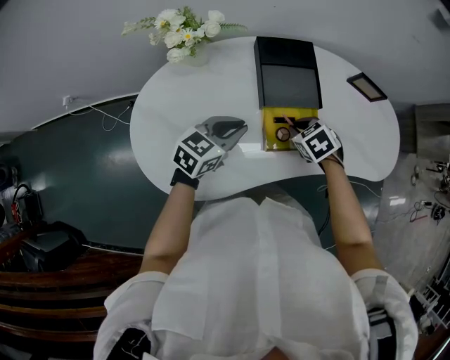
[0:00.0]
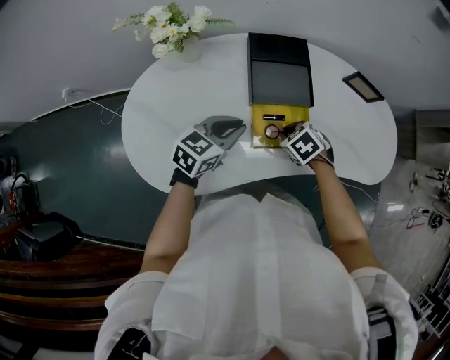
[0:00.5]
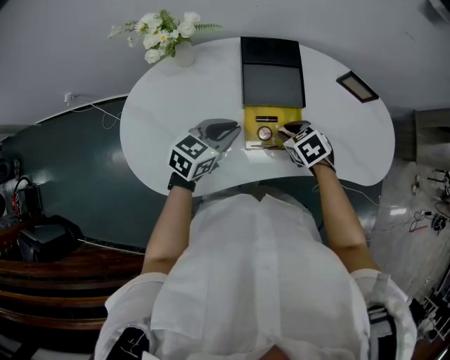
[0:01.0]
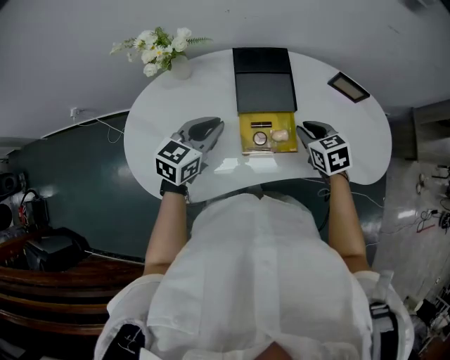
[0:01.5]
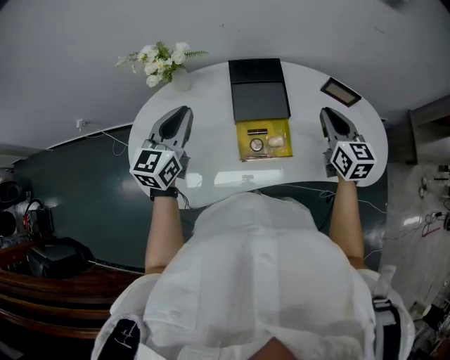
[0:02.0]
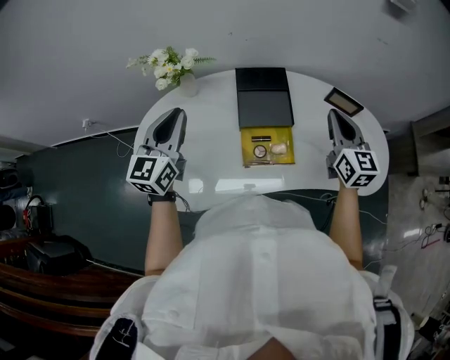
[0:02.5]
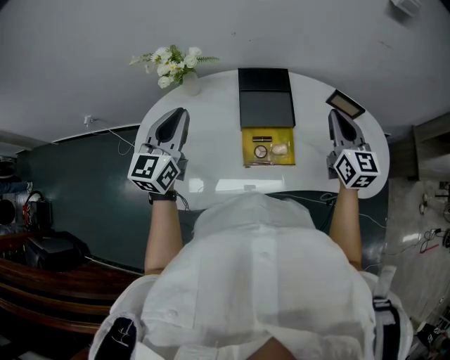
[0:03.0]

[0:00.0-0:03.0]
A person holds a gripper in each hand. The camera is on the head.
0:00.0 to 0:01.5: The right gripper heads to the right and upward, covering about 10 cm, and swivels approximately 20 degrees.
0:01.5 to 0:03.0: The right gripper shifts roughly 15 cm upward, and tips its fingers upward by approximately 40 degrees; the left gripper heads upward and to the left, covering approximately 15 cm, and swivels some 30 degrees.

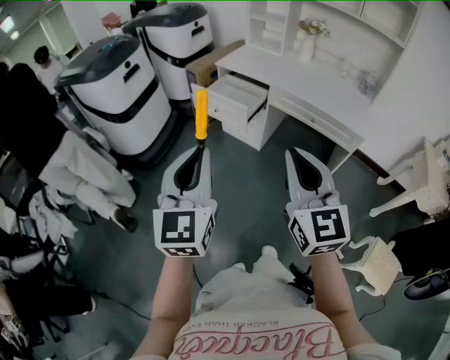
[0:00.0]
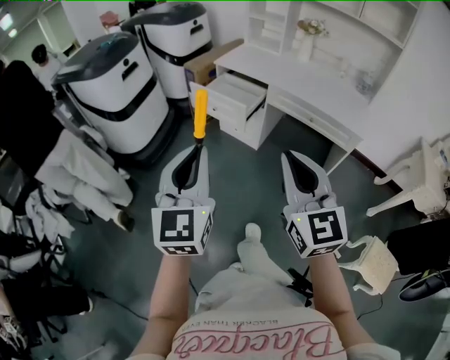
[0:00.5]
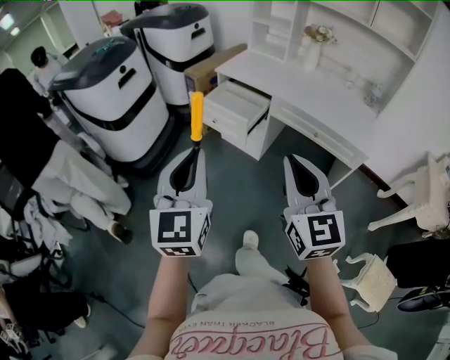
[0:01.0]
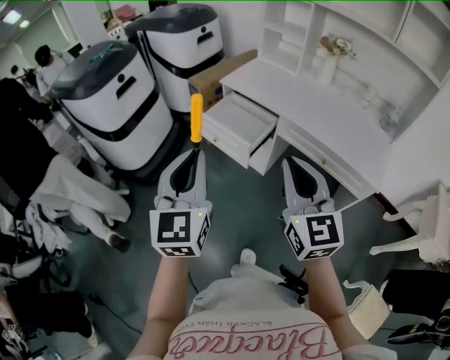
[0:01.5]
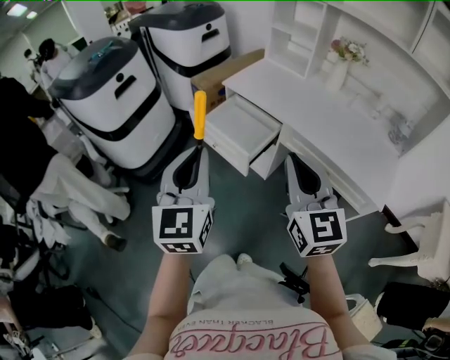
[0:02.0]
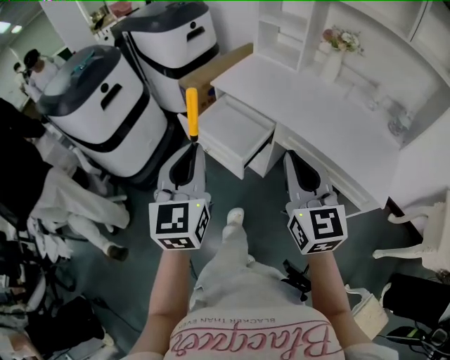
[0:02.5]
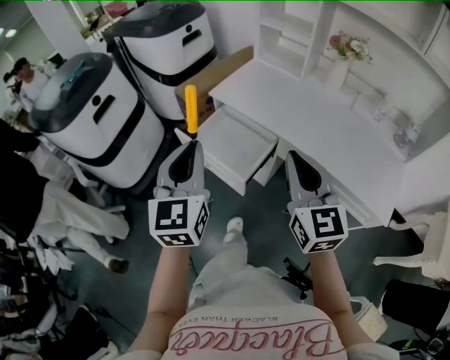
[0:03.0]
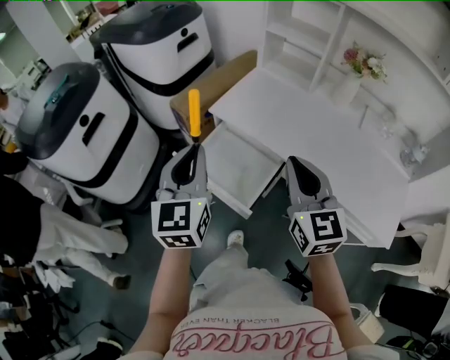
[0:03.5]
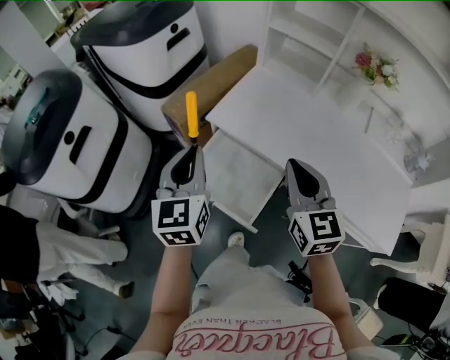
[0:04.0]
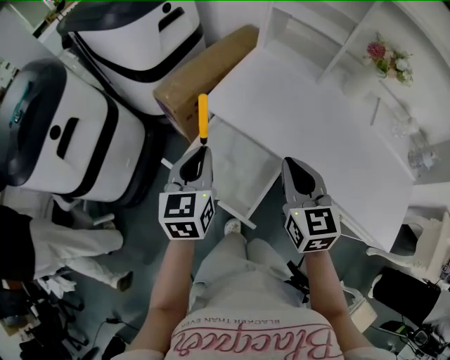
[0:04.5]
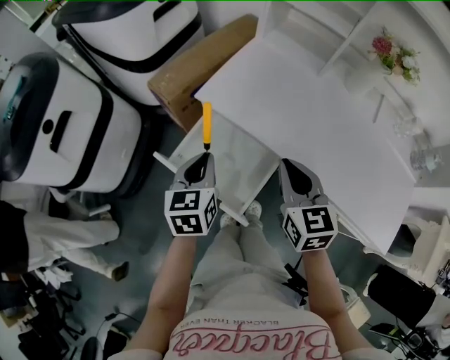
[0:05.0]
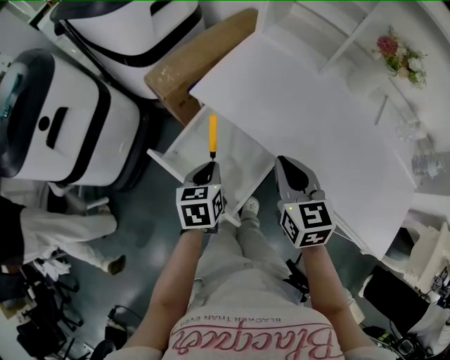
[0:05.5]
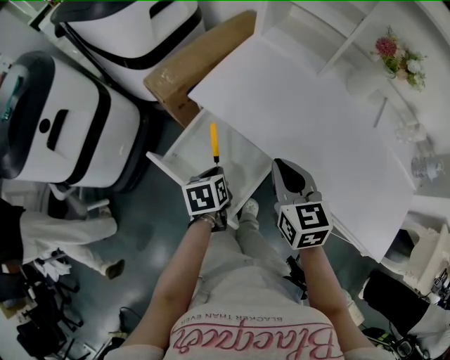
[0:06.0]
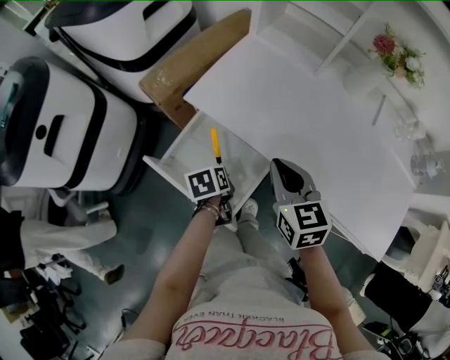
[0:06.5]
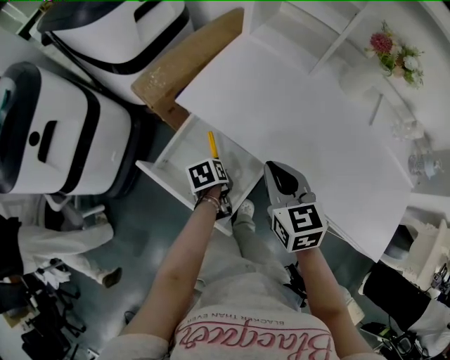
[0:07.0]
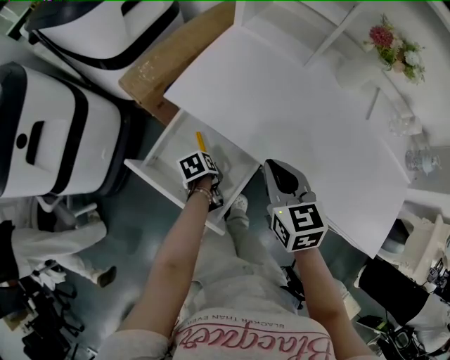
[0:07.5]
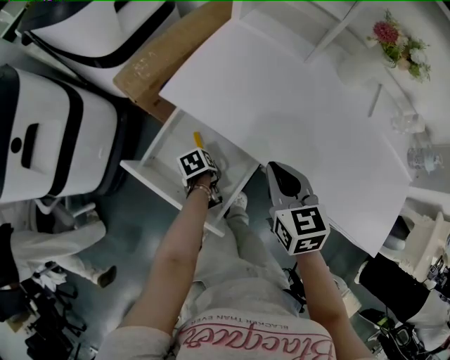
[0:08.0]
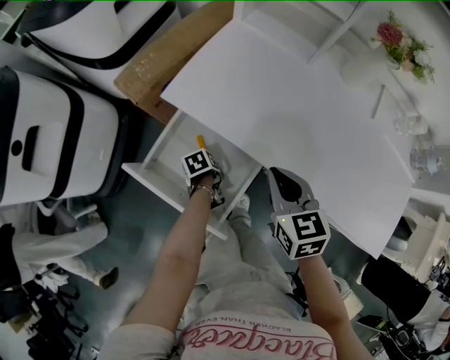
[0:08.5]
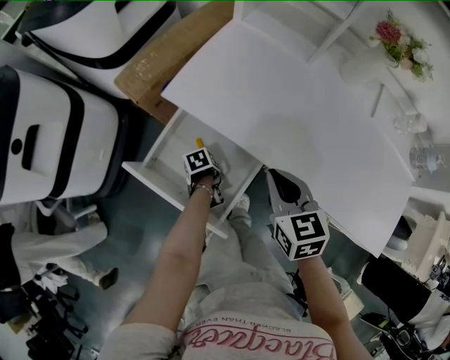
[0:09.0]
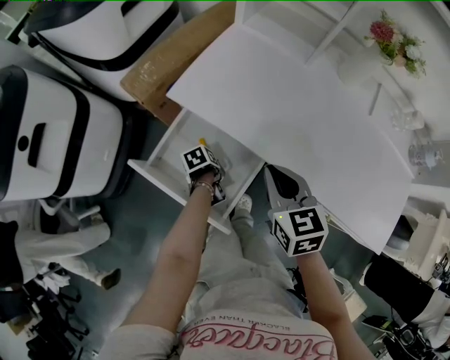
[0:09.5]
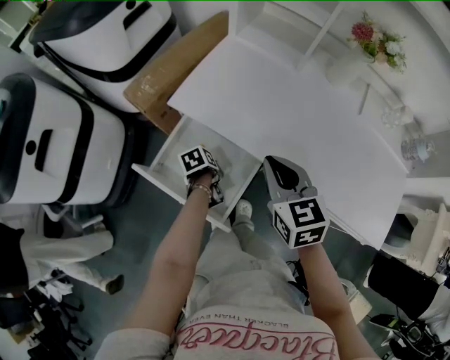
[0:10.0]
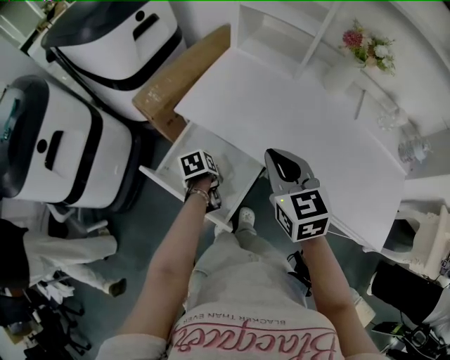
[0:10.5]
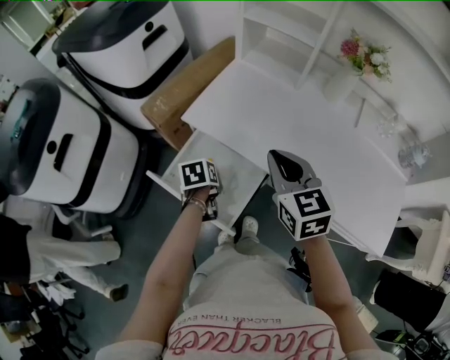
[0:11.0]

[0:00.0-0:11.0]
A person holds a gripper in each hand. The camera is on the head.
0:00.0 to 0:02.0: The grippers both shift forward by approximately 30 cm.
0:02.0 to 0:03.5: Both grippers move forward, some 25 cm.
0:03.5 to 0:05.5: The right gripper moves downward and forward, approximately 15 cm, and rotates roughly 20 degrees. Meanwhile the left gripper is displaced downward by about 25 cm, and angles its fingers downward, by approximately 40 degrees.
0:05.5 to 0:07.5: The left gripper shifts about 20 cm downward, and swivels roughly 40 degrees.
0:07.5 to 0:09.0: The left gripper goes approximately 5 cm downward.
0:09.0 to 0:11.0: The right gripper shifts roughly 10 cm upward, while the left gripper is displaced upward by about 20 cm, turns by about 30 degrees, and opens its fingers.

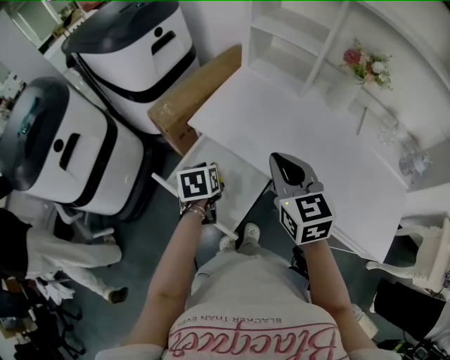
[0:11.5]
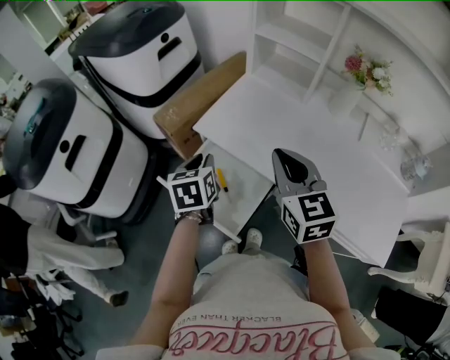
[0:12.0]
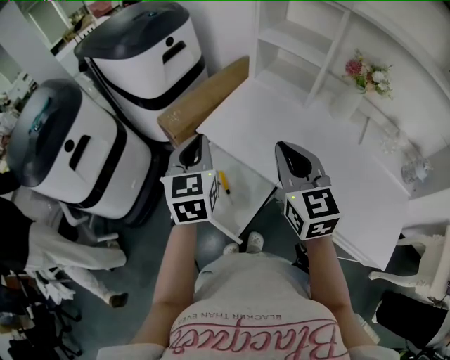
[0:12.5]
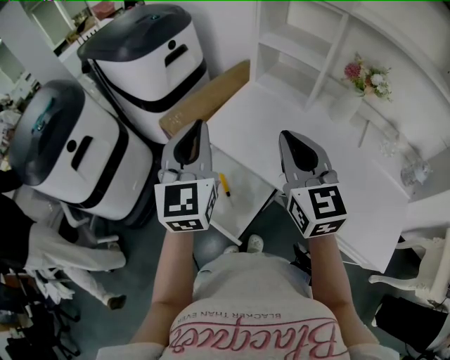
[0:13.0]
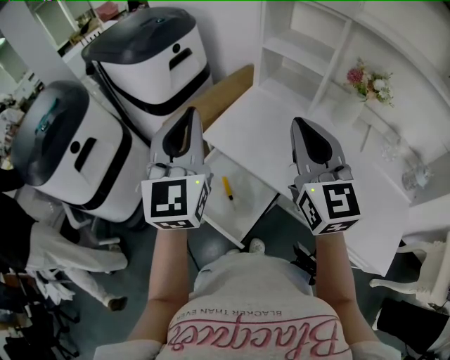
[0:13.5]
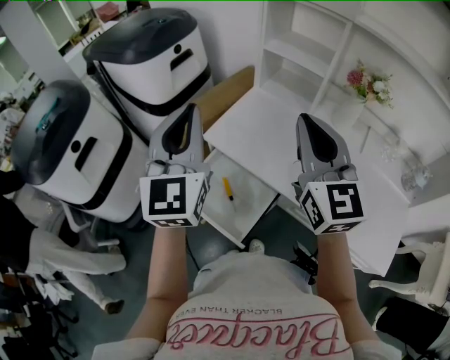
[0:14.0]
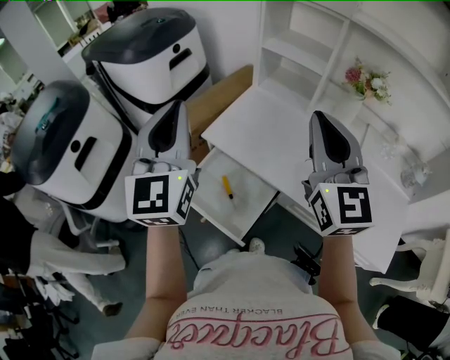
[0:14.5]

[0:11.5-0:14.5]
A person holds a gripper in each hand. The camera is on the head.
0:11.5 to 0:13.0: The left gripper shifts about 30 cm upward, tilts its fingers some 50 degrees upward, and closes up. Meanwhile the right gripper heads upward, covering roughly 10 cm.
0:13.0 to 0:14.5: The grippers both shift upward by some 10 cm.

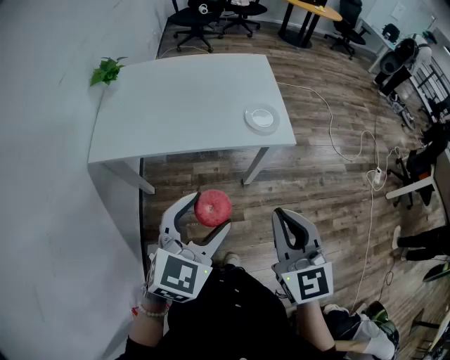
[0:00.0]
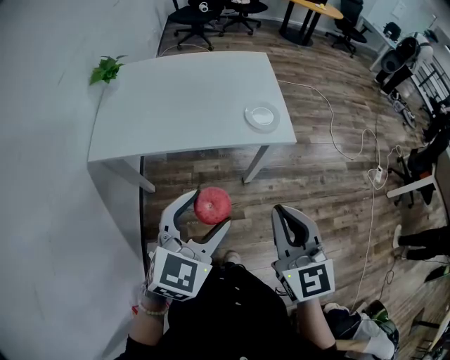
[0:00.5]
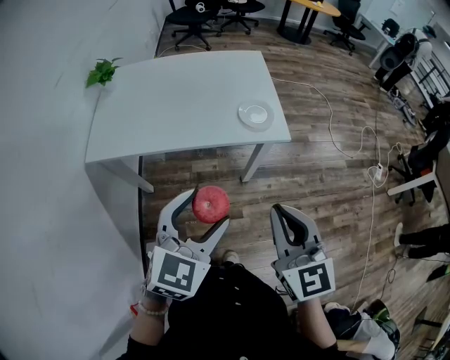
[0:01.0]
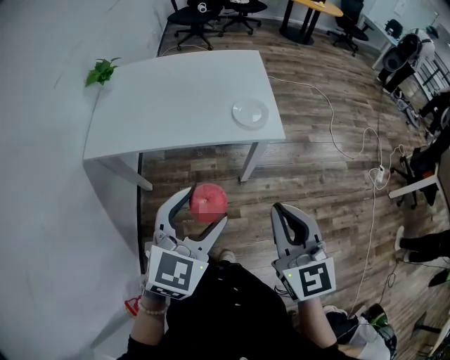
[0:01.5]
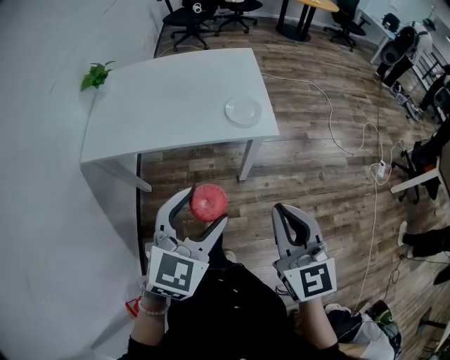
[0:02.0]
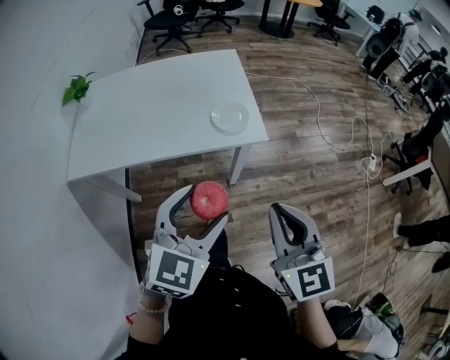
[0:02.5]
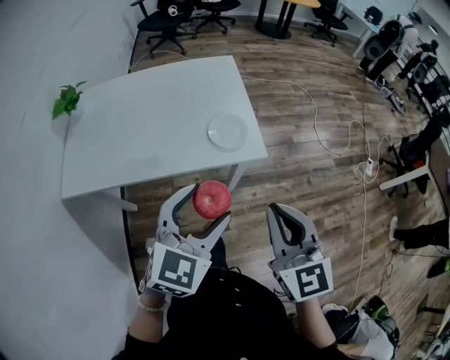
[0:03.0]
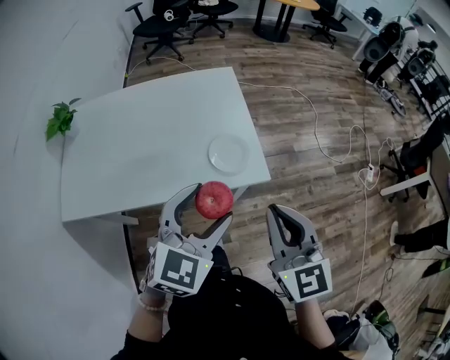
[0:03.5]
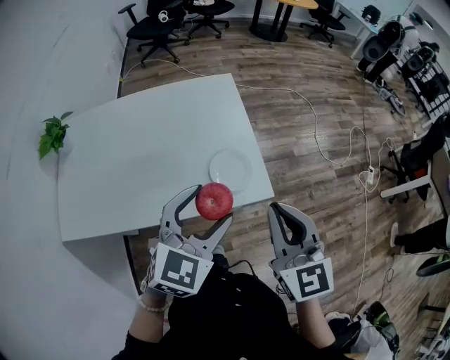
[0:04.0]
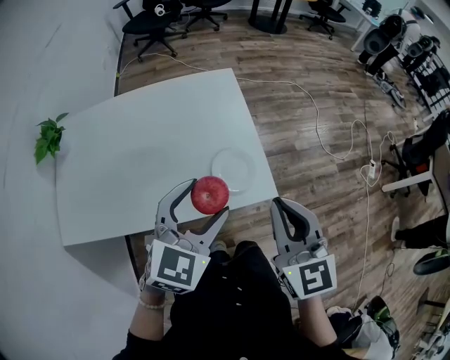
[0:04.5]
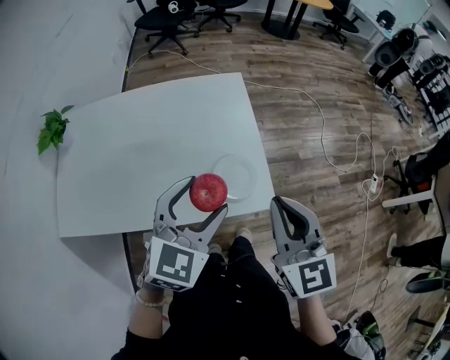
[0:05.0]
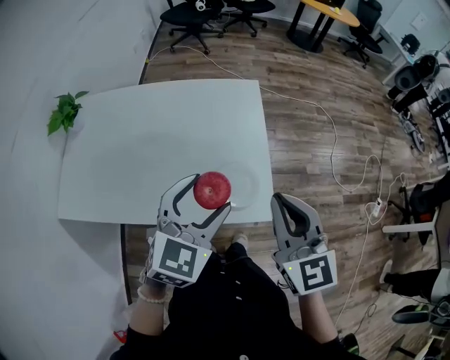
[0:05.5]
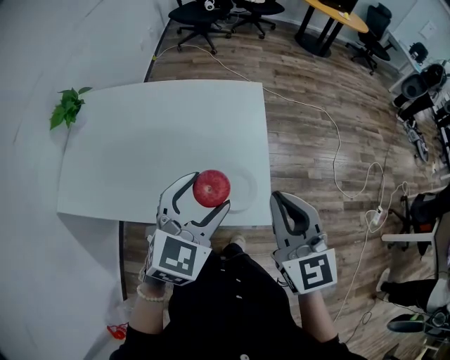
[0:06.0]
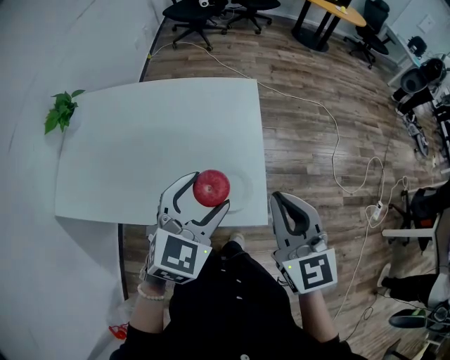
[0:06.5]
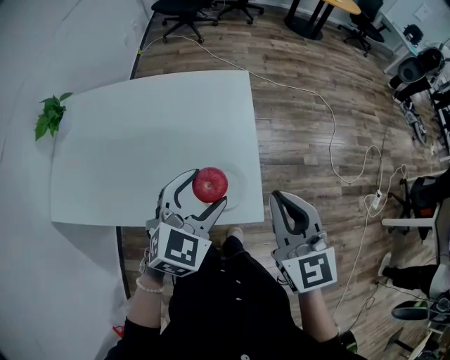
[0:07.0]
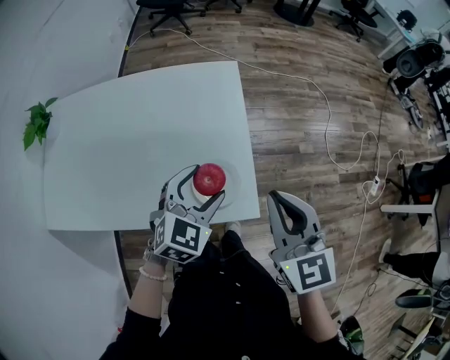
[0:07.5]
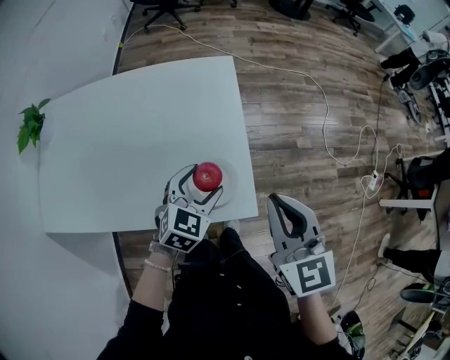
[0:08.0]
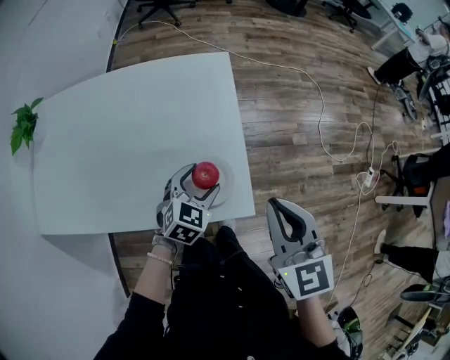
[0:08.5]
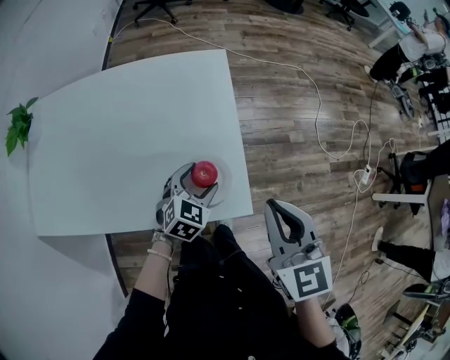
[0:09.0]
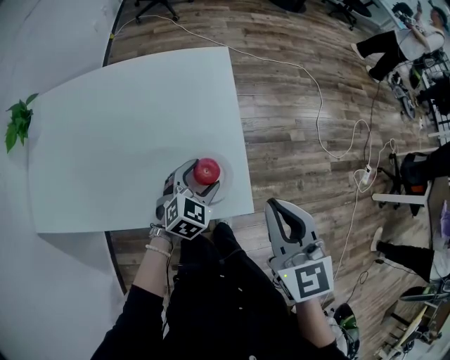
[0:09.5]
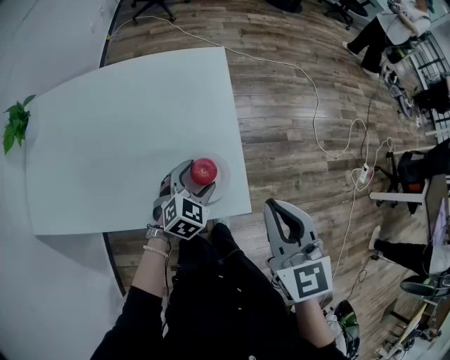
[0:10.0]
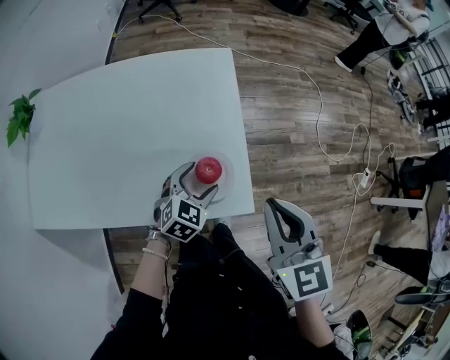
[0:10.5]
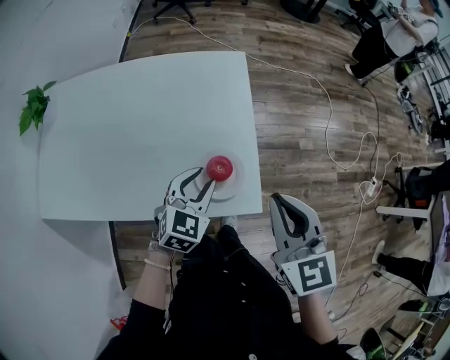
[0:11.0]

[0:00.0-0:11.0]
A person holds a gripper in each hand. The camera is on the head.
0:00.0 to 0:02.0: Both grippers travel together to the right, about 10 cm.
0:02.0 to 0:03.5: The two grippers go roughly 20 cm forward.
0:03.5 to 0:05.5: Both grippers move forward, roughly 15 cm.
0:05.5 to 0:07.5: The right gripper is displaced to the right by approximately 5 cm. Meanwhile the left gripper is displaced downward, to the right and forward by roughly 15 cm.
0:07.5 to 0:09.0: The left gripper goes roughly 15 cm downward.
0:09.0 to 0:11.0: The left gripper is displaced upward by approximately 5 cm, and closes its fingers.
